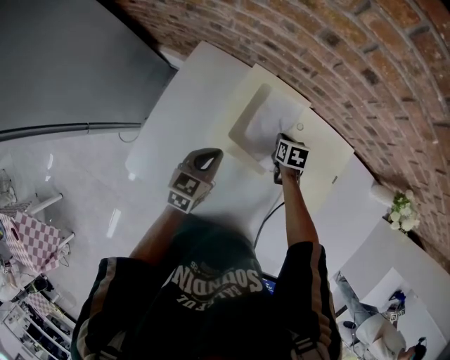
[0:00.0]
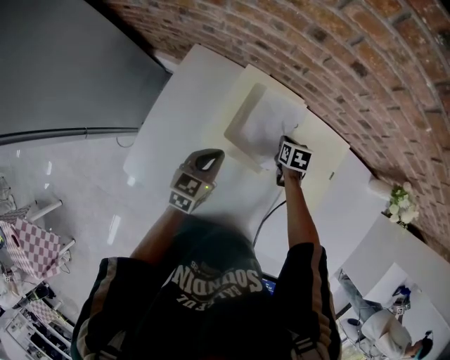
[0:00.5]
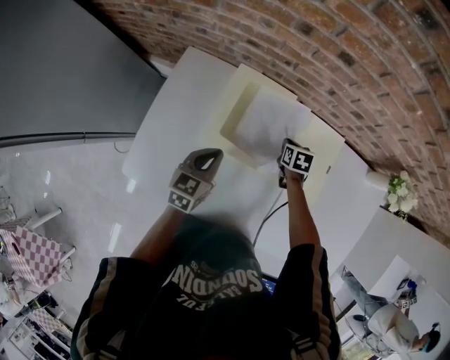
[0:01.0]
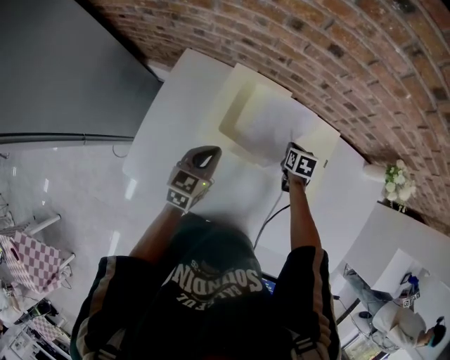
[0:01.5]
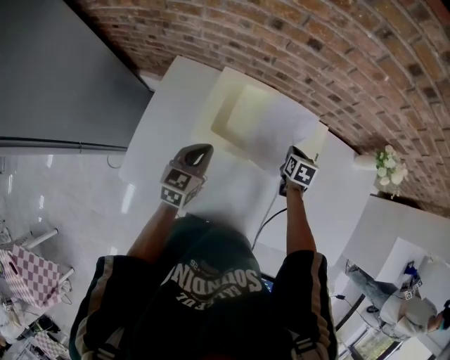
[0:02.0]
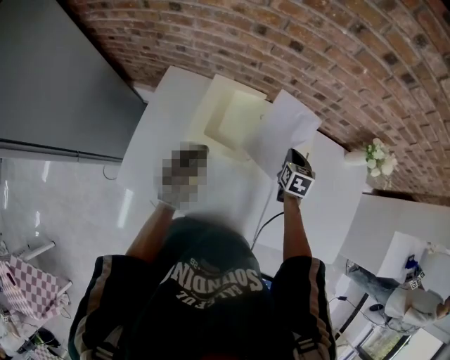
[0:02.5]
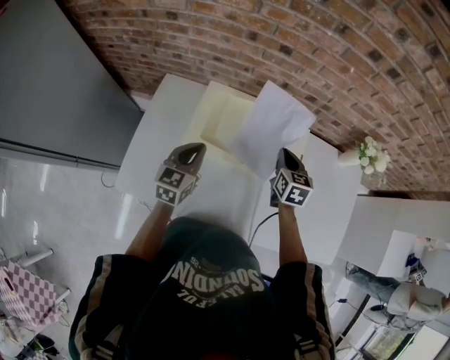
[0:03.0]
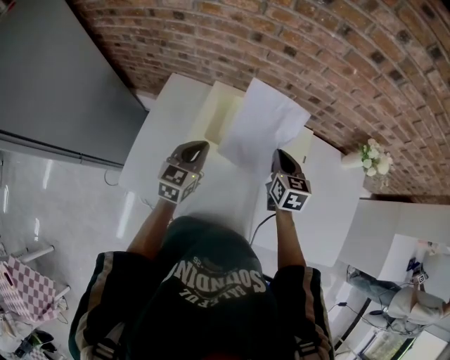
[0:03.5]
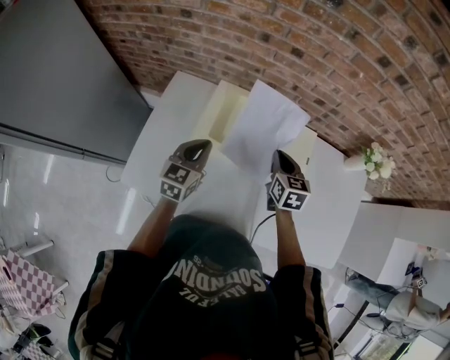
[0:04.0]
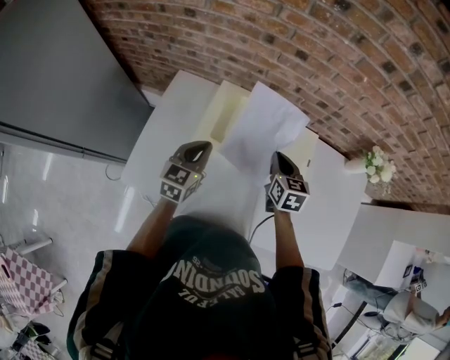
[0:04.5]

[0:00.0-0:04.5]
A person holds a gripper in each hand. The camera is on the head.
0:00.0 to 0:02.0: The right gripper shifts some 20 cm to the right, upward and backward, and turns by some 20 degrees; the left gripper shifts some 5 cm upward.
0:02.0 to 0:04.5: The left gripper goes approximately 5 cm upward. The right gripper shifts some 20 cm upward, to the left and backward, and swivels roughly 20 degrees.

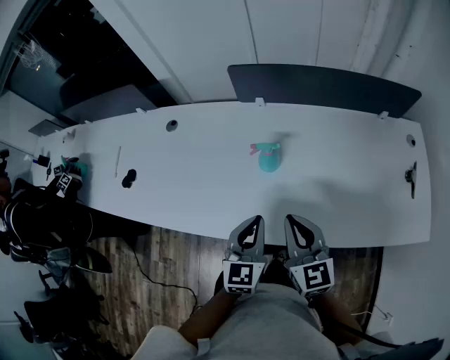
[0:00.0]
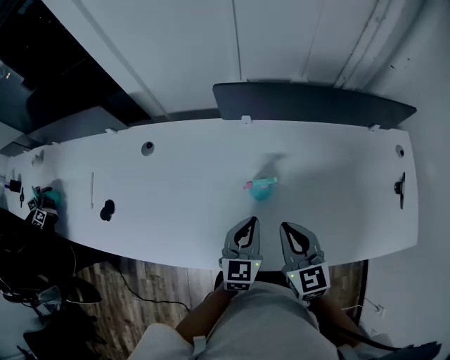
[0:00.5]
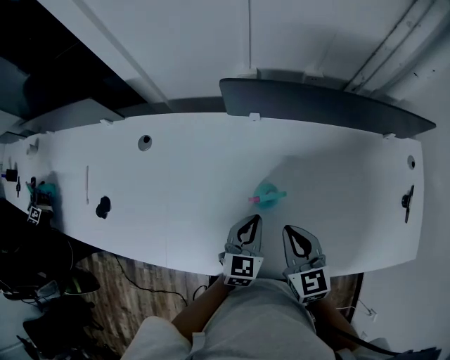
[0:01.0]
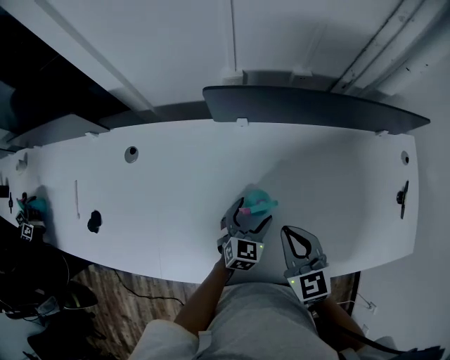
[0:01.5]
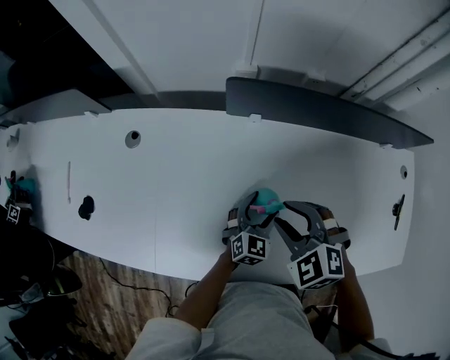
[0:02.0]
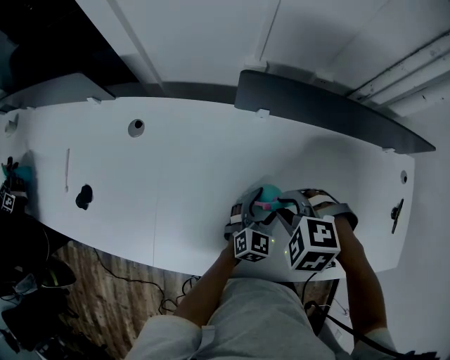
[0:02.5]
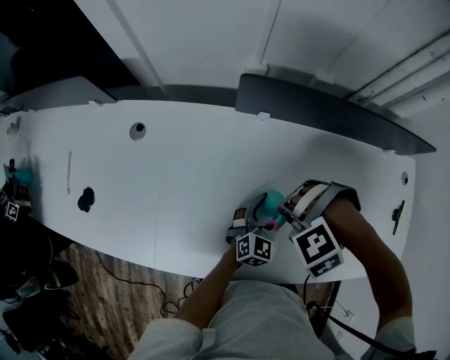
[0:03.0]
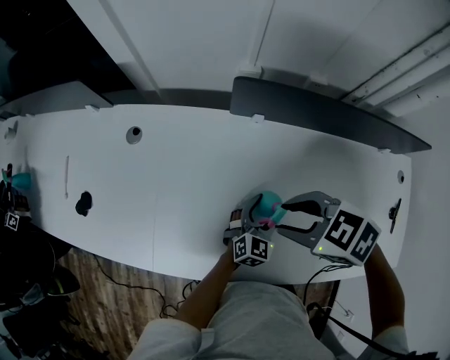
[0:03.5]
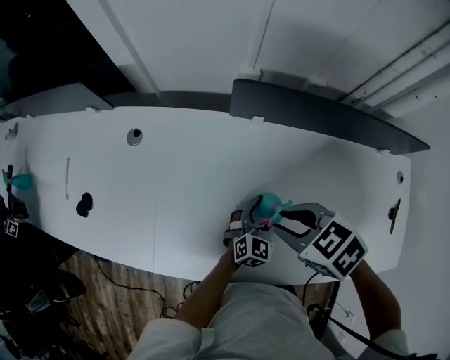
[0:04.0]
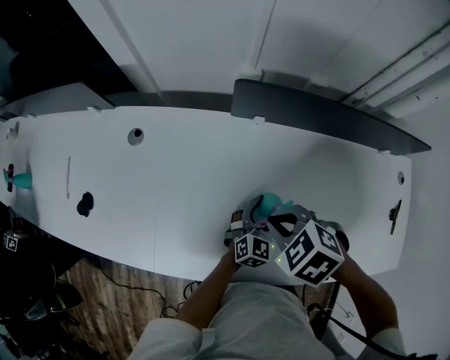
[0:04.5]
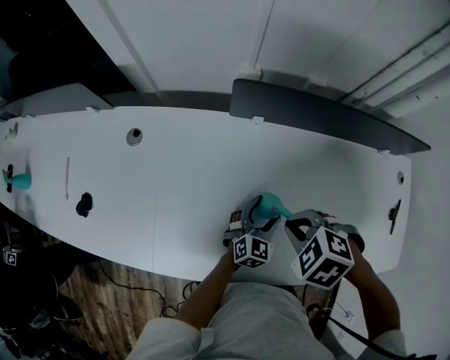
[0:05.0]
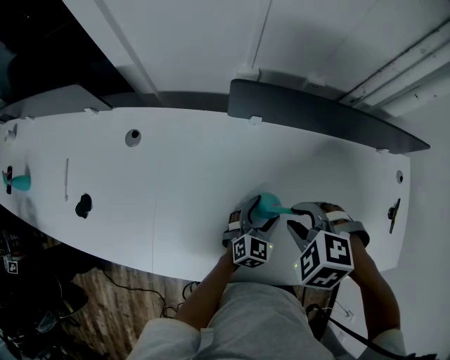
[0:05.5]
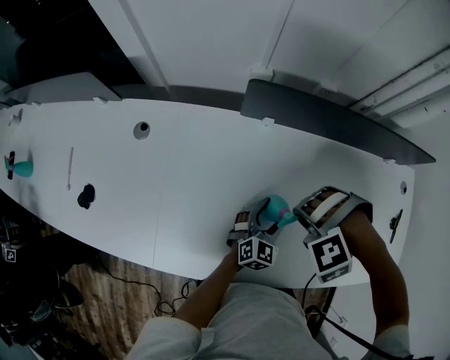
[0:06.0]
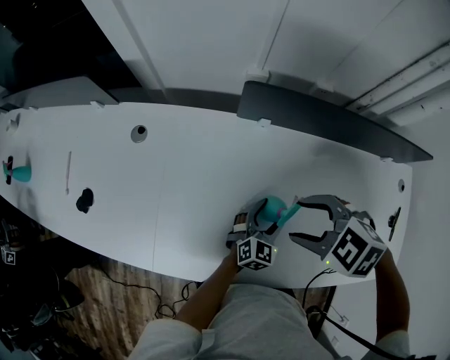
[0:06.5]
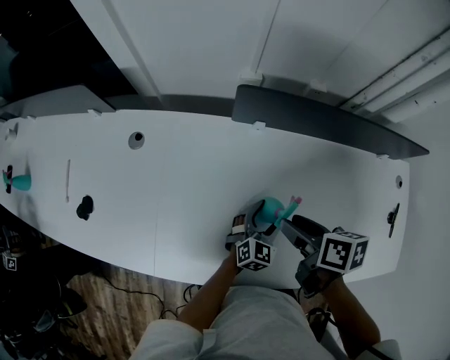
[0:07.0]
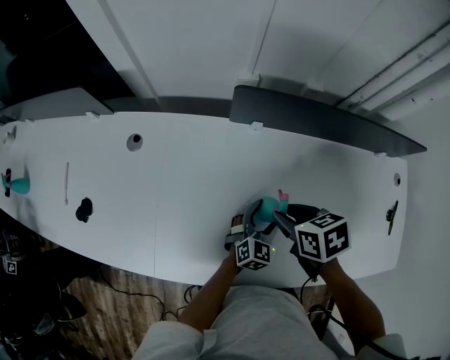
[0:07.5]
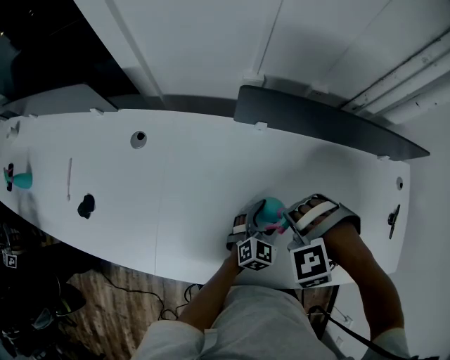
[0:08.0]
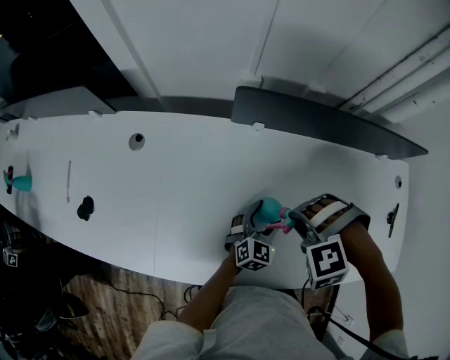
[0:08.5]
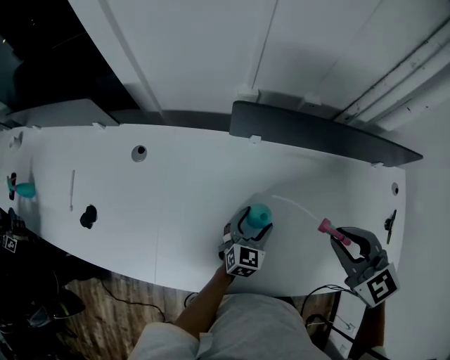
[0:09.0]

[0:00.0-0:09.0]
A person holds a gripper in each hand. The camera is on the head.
0:00.0 to 0:02.0: The left gripper shifts about 25 cm forward and downward, swivels approximately 20 degrees, and opens up. The right gripper moves forward, approximately 20 cm, tips its fingers downward by approximately 40 degrees, and opens.
0:02.0 to 0:04.5: The right gripper rotates approximately 30 degrees, and closes up.
0:04.5 to 0:07.0: The right gripper ends up approximately 5 cm from where it was, twists approximately 70 degrees clockwise, seen from behind, and opens.
0:07.0 to 0:09.0: The right gripper shifts roughly 10 cm upward, rolls counterclockwise, seen from behind, by some 70 degrees, and closes its fingers.

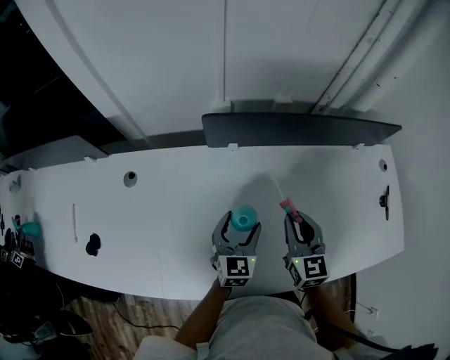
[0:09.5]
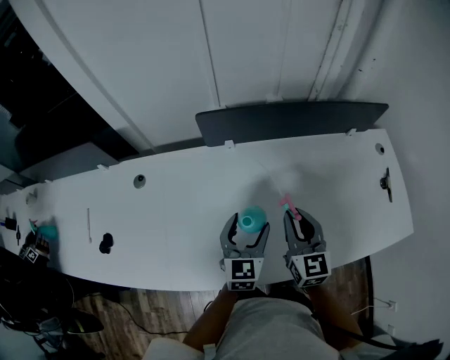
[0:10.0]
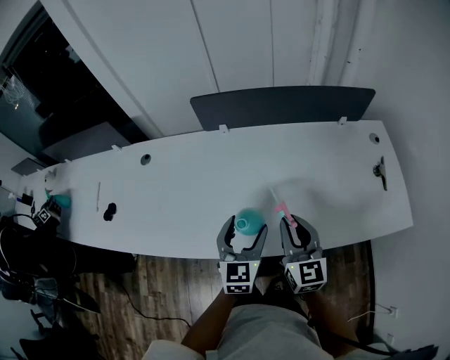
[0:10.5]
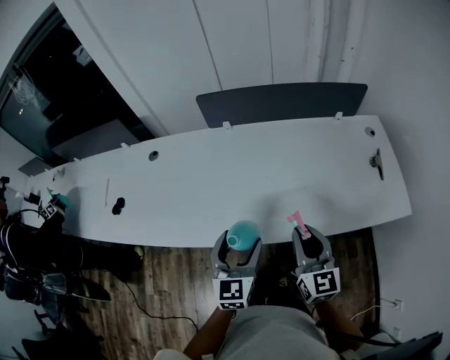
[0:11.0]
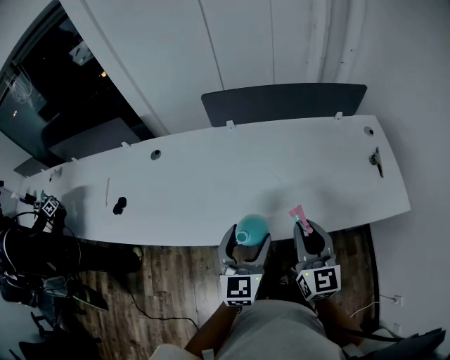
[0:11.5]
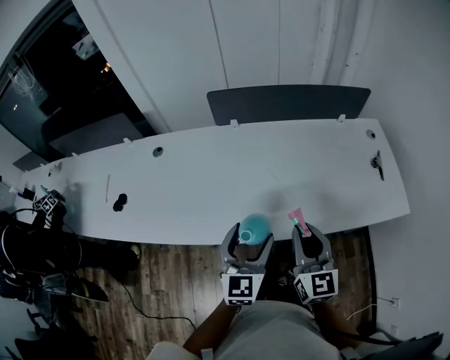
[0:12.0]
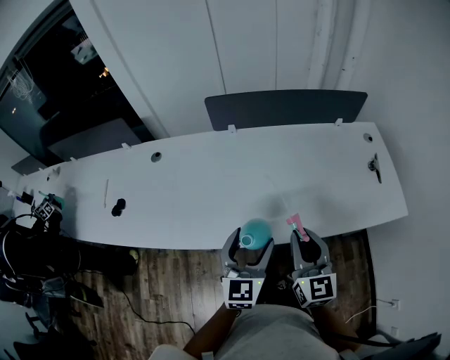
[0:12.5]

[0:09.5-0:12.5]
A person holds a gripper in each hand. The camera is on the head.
0:09.5 to 0:11.0: The right gripper heads backward, covering approximately 30 cm; the left gripper goes about 30 cm backward and upward.
0:11.0 to 0:12.5: The right gripper shifts by some 5 cm.

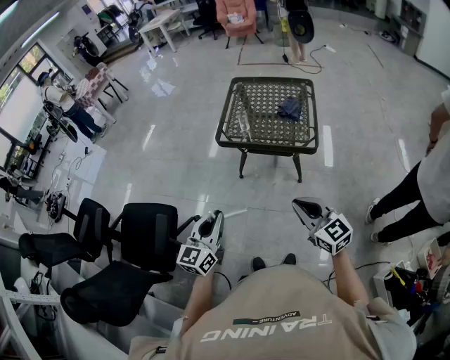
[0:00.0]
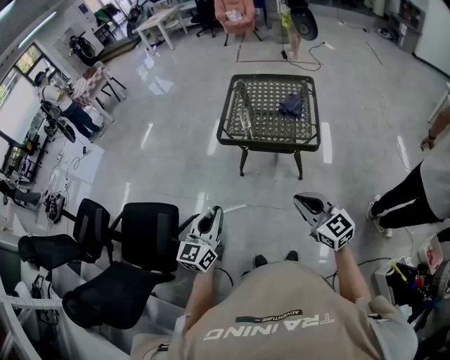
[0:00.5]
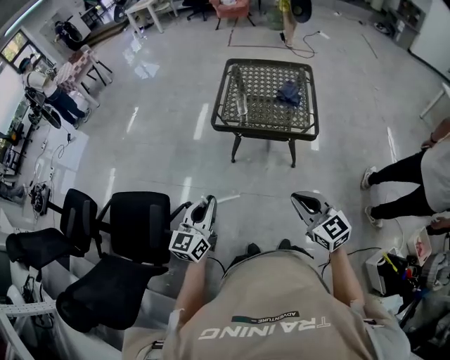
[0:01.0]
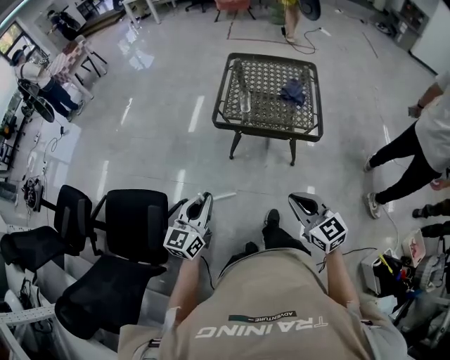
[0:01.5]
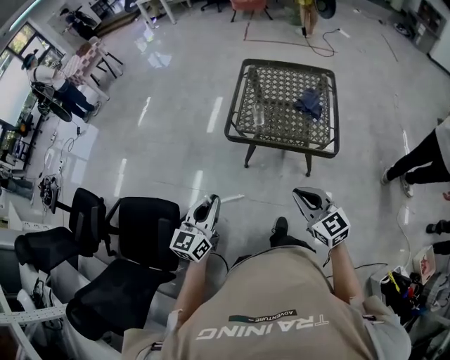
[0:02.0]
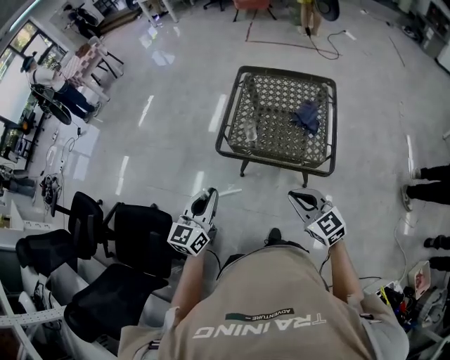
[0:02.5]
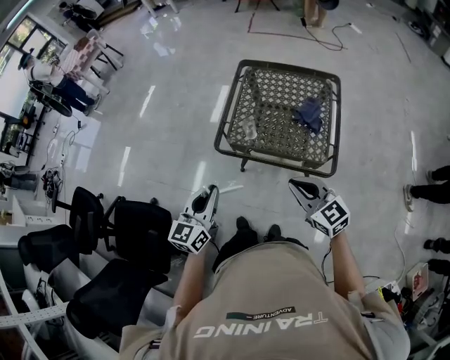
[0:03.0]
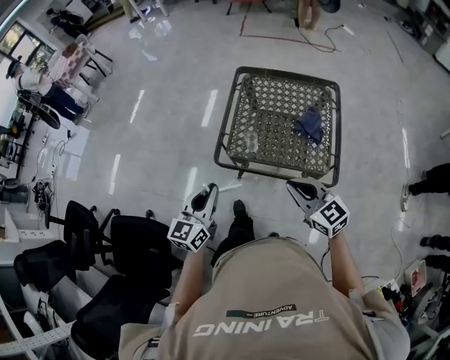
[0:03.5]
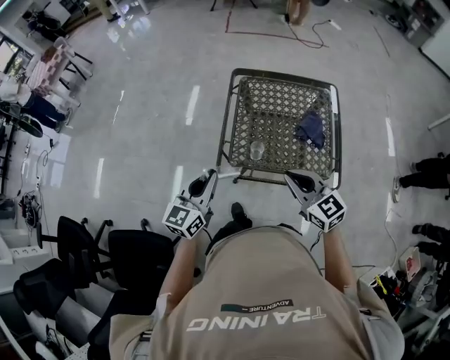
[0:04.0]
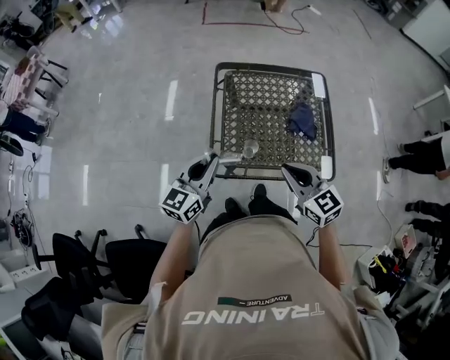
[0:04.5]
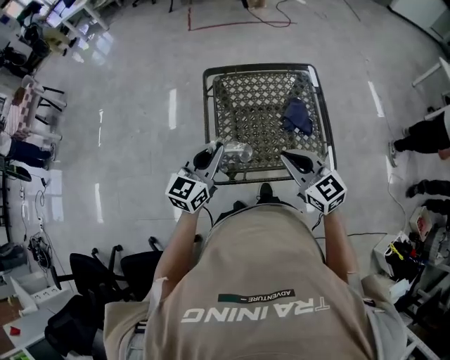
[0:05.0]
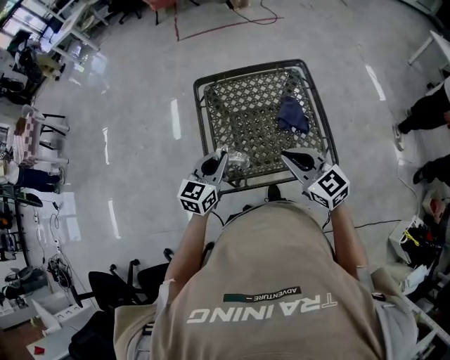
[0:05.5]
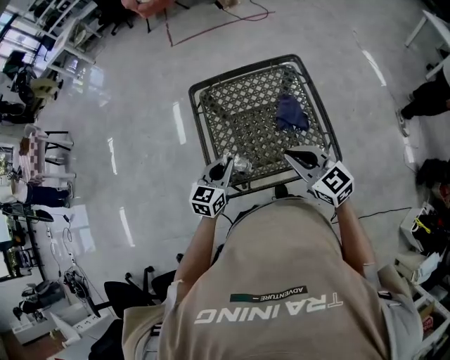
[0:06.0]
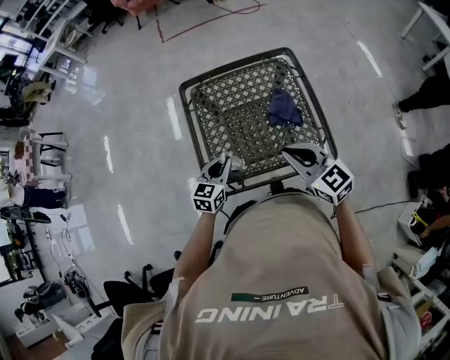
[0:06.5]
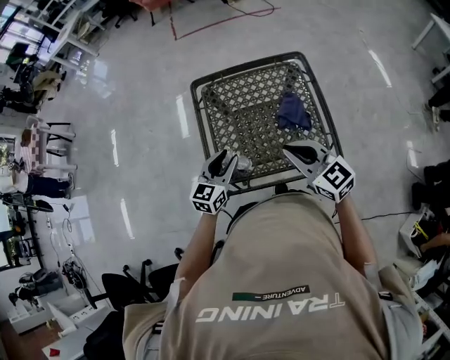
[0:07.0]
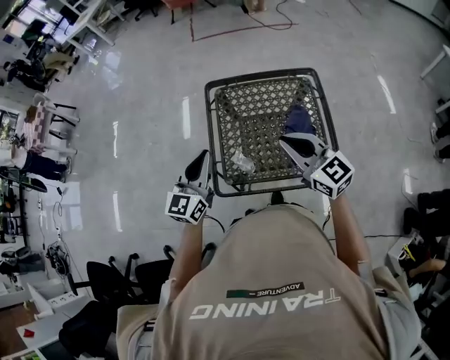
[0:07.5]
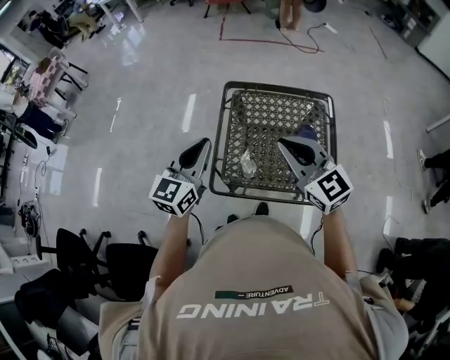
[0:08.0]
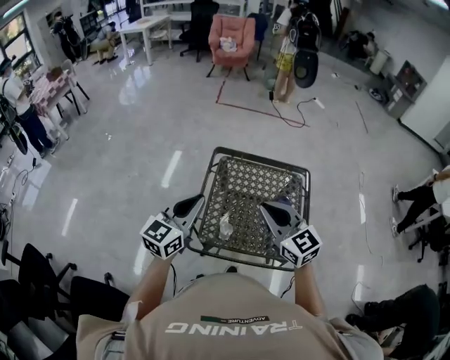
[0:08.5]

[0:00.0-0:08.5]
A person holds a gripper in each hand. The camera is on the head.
0:00.0 to 0:02.0: Both grippers move forward, some 15 cm.
0:02.0 to 0:04.0: Both grippers travel together forward, roughly 30 cm.
0:04.0 to 0:06.5: The left gripper goes roughly 25 cm forward, downward and to the right, and rotates approximately 30 degrees, while the right gripper shifts roughly 15 cm to the right and forward.
0:06.5 to 0:08.5: The left gripper goes about 25 cm upward and to the left, changes its angle by approximately 30 degrees, and opens, then closes once more. Meanwhile the right gripper is displaced upward, to the left and forward by approximately 15 cm.

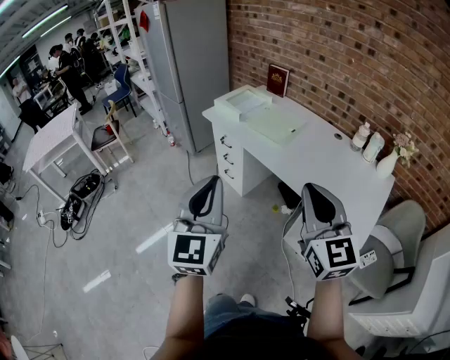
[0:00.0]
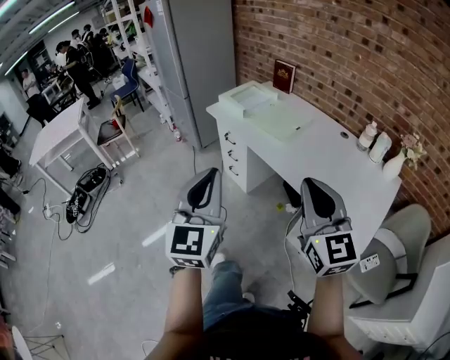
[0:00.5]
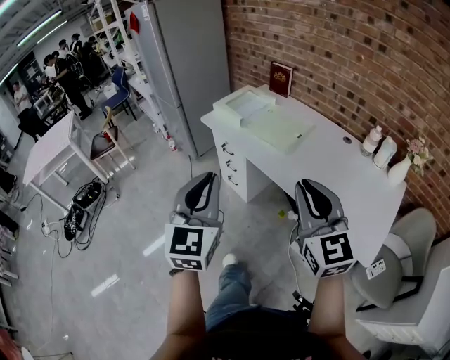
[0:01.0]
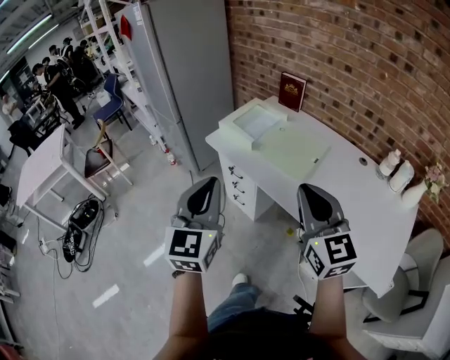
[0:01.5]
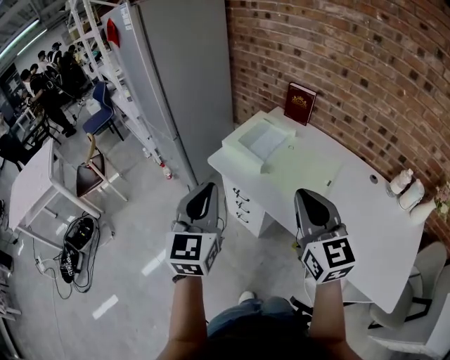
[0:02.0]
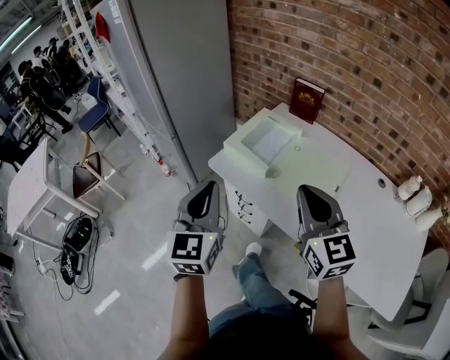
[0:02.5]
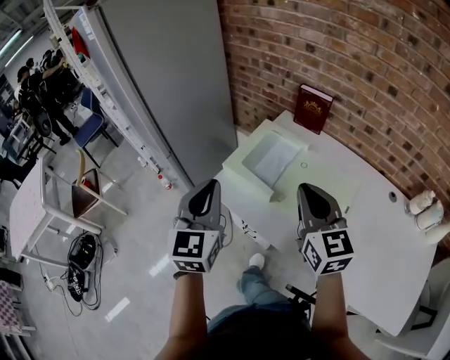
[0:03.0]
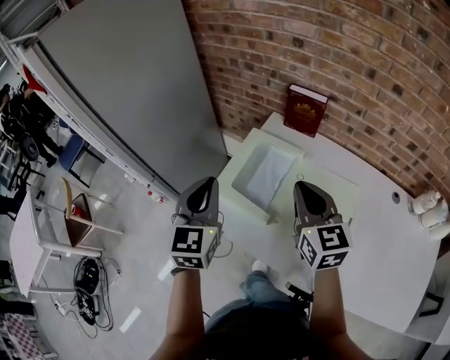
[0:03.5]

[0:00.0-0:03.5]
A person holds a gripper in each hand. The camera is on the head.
0:00.0 to 0:02.0: Both grippers are carried forward, roughly 40 cm.
0:02.0 to 0:03.5: Both grippers travel together forward, some 35 cm.
